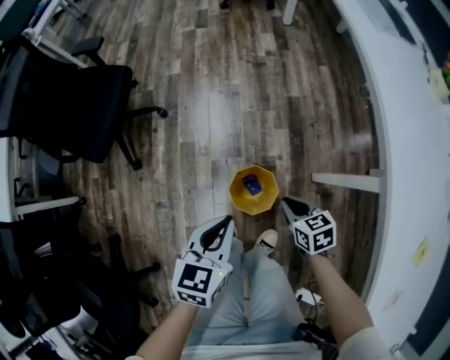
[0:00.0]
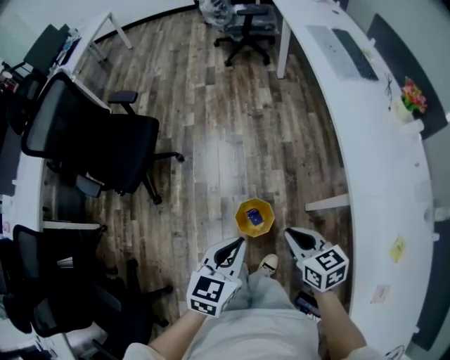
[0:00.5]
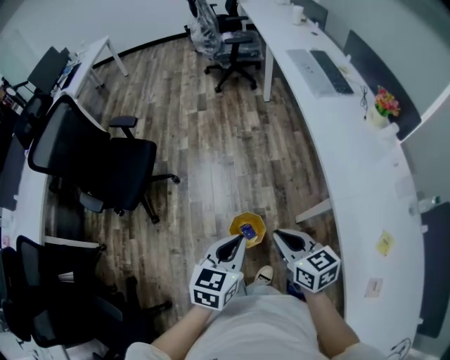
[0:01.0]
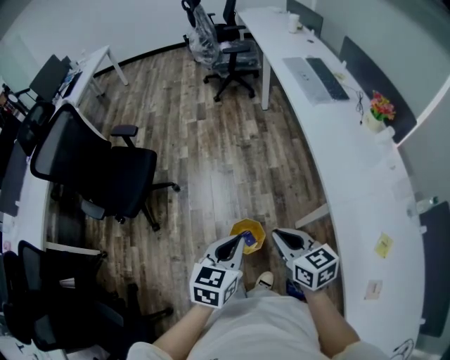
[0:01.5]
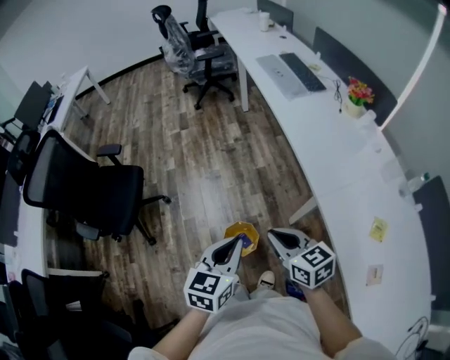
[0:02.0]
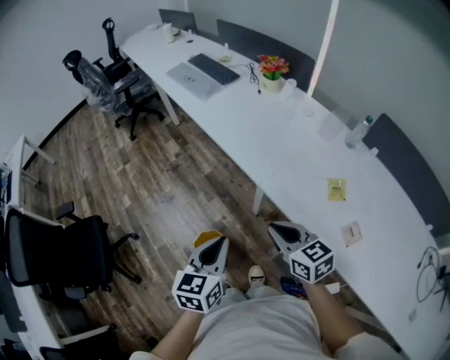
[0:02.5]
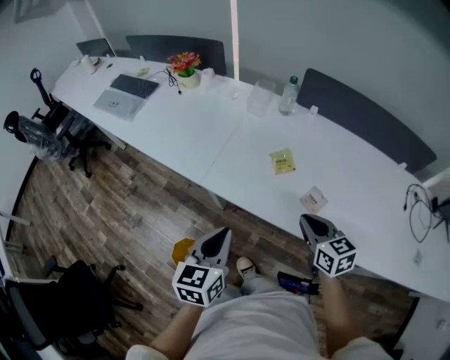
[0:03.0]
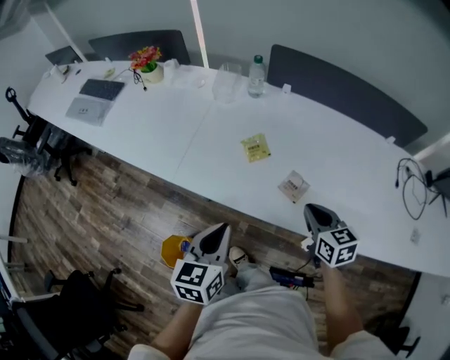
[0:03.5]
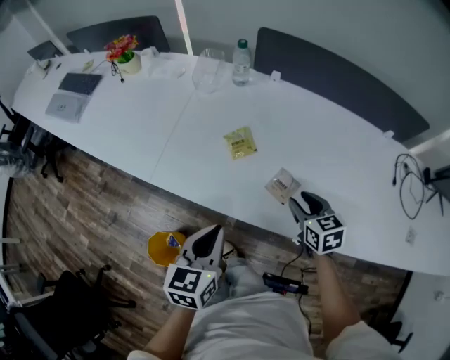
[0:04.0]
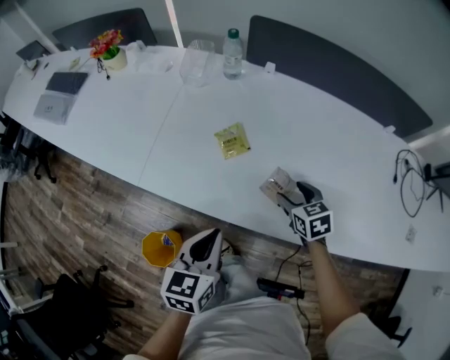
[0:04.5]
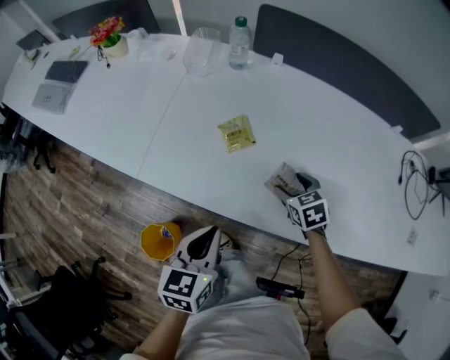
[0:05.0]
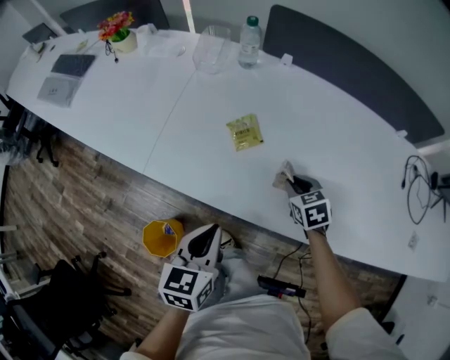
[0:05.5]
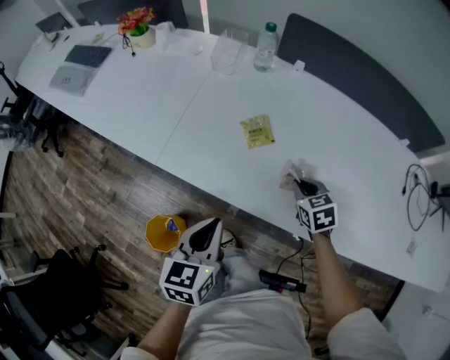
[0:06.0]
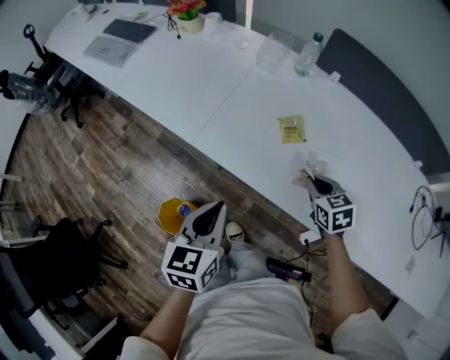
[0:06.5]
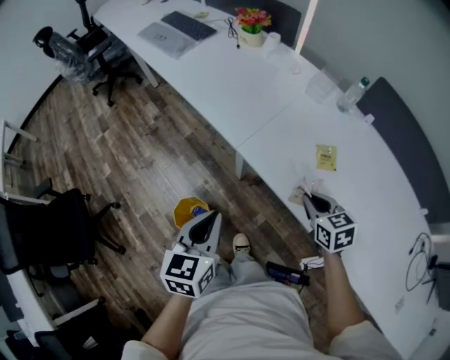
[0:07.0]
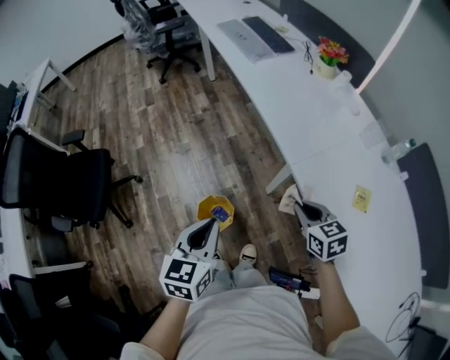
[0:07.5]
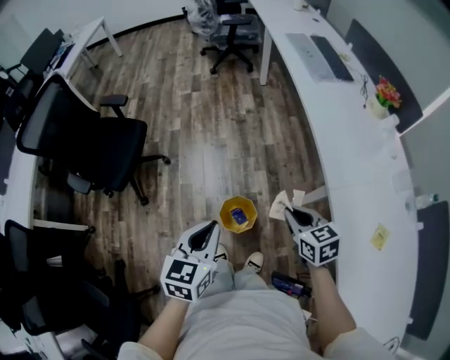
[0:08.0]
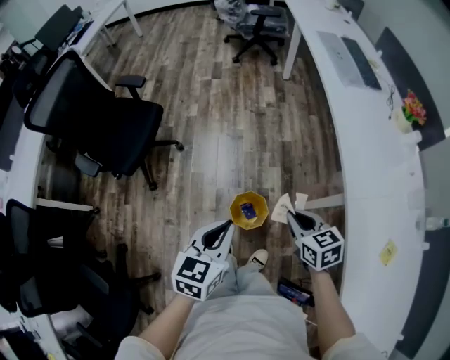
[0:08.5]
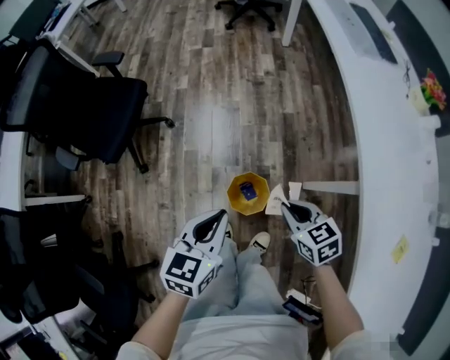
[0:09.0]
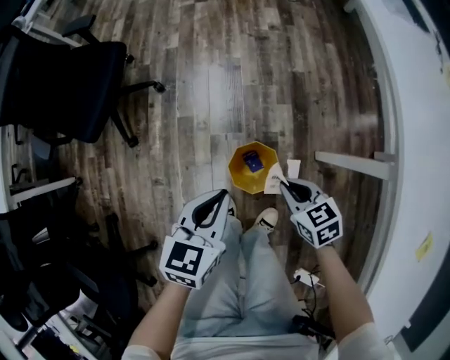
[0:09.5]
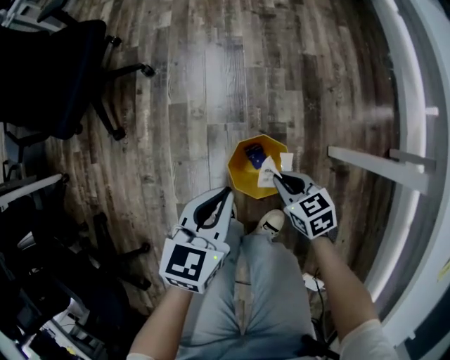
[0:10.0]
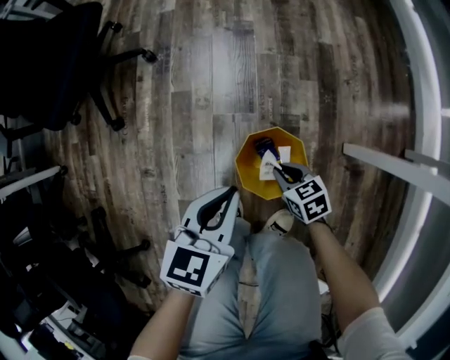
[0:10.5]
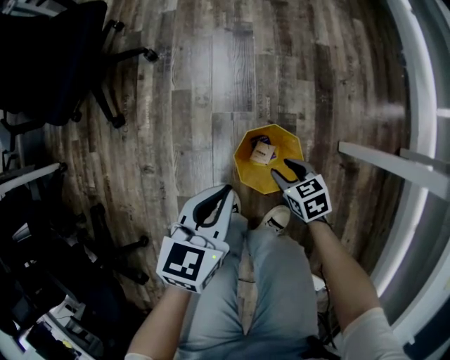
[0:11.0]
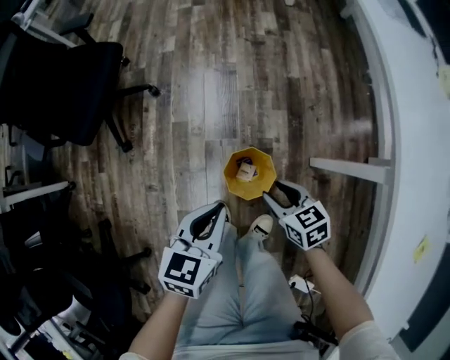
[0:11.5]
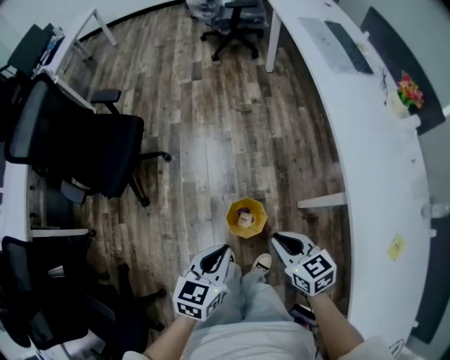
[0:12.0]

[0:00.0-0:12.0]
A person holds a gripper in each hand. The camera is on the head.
0:00.0 to 0:02.0: The two grippers go approximately 30 cm upward. The right gripper turns by roughly 30 degrees.
0:02.0 to 0:04.0: The left gripper moves roughly 40 cm, and turns by roughly 50 degrees. The right gripper shifts by some 60 cm, swivels some 70 degrees, and opens up.
0:04.0 to 0:06.0: The right gripper travels downward by about 5 cm, and closes up.
0:06.0 to 0:08.0: Both grippers are carried some 50 cm. The right gripper swivels about 60 degrees, while the left gripper turns by approximately 60 degrees.
0:08.0 to 0:10.0: Both grippers move downward, about 40 cm. The right gripper turns by about 20 degrees.
0:10.0 to 0:12.0: Both grippers move upward, about 30 cm. The right gripper opens, then closes again.

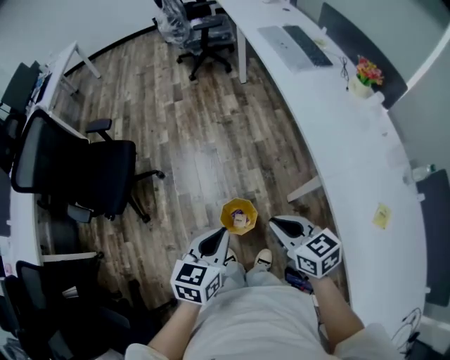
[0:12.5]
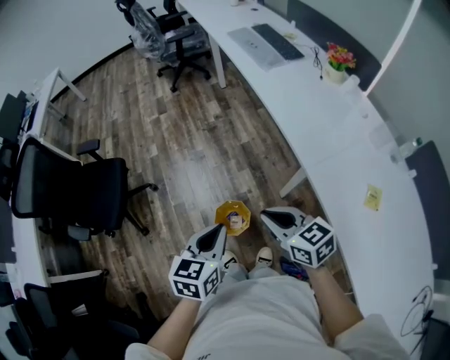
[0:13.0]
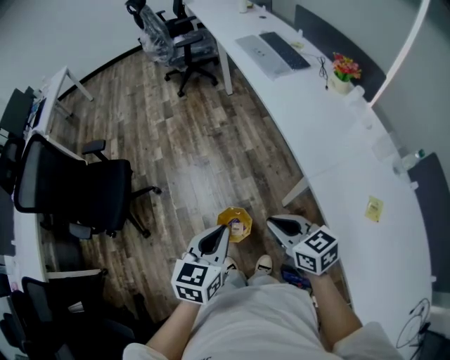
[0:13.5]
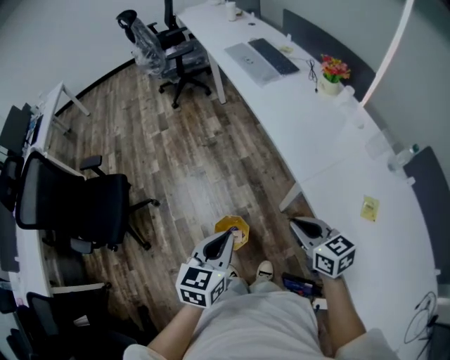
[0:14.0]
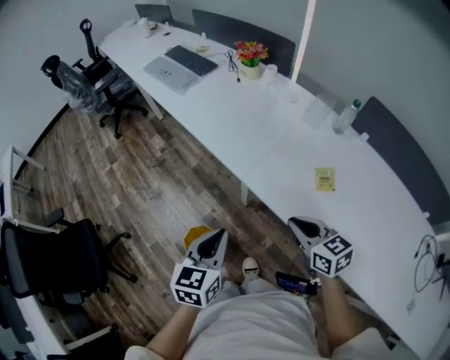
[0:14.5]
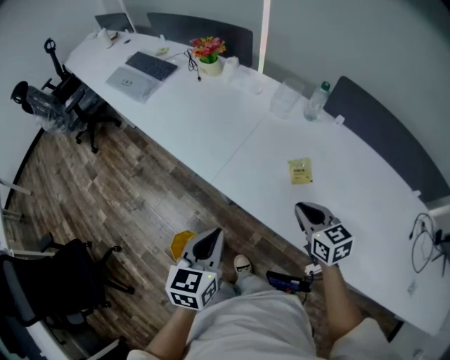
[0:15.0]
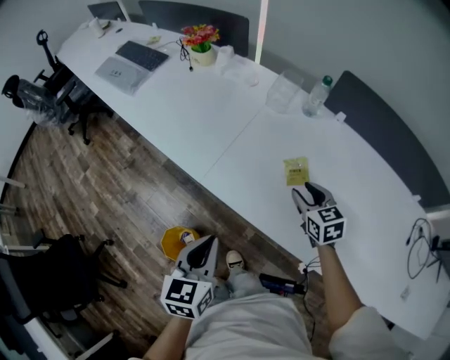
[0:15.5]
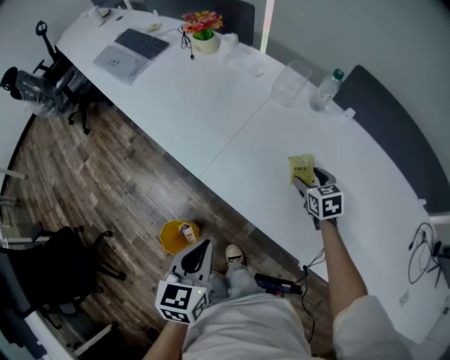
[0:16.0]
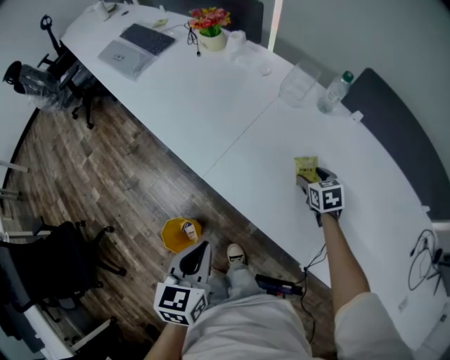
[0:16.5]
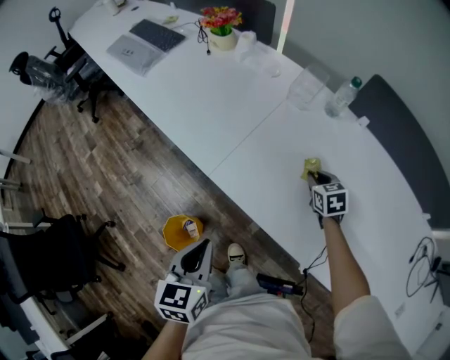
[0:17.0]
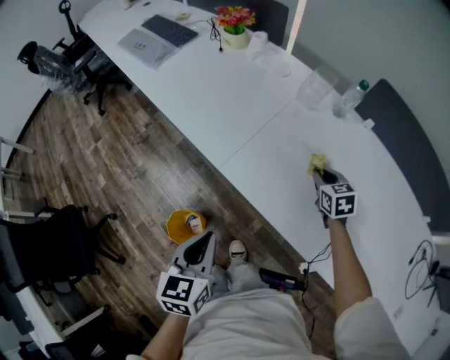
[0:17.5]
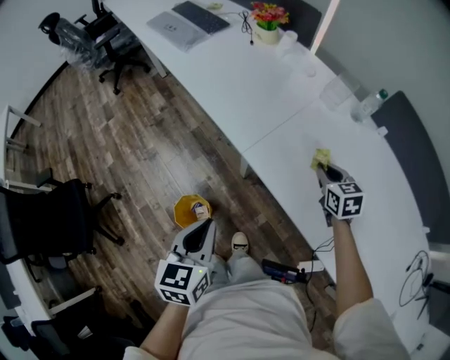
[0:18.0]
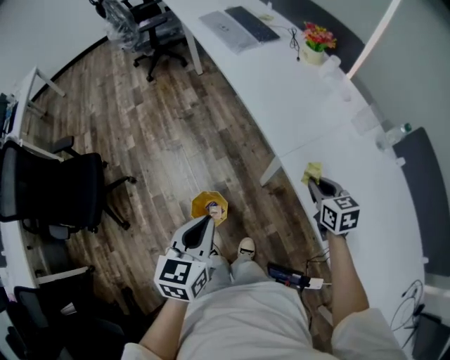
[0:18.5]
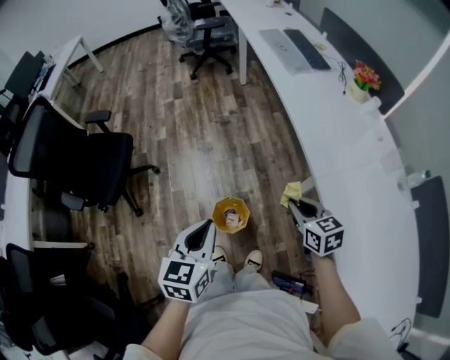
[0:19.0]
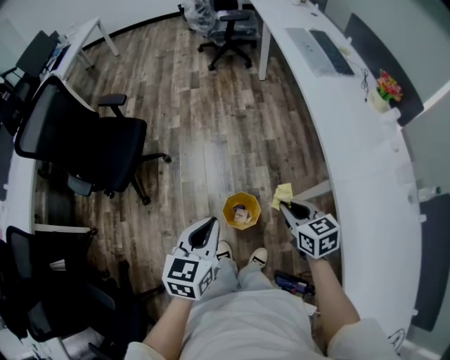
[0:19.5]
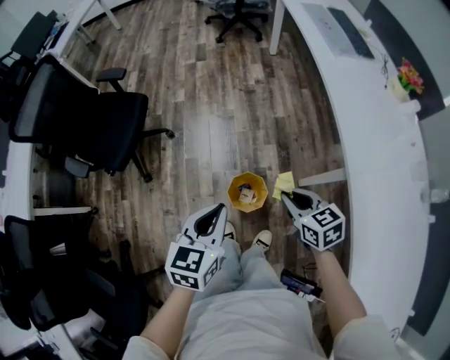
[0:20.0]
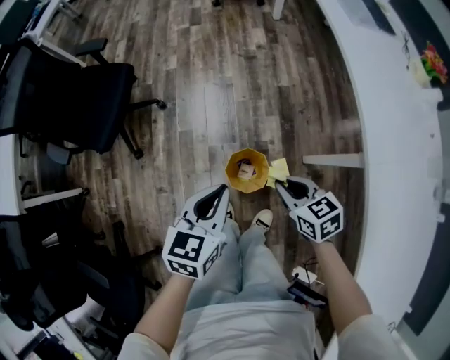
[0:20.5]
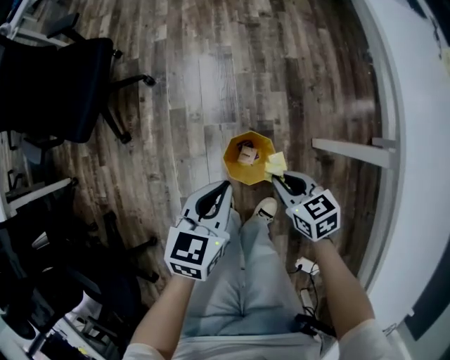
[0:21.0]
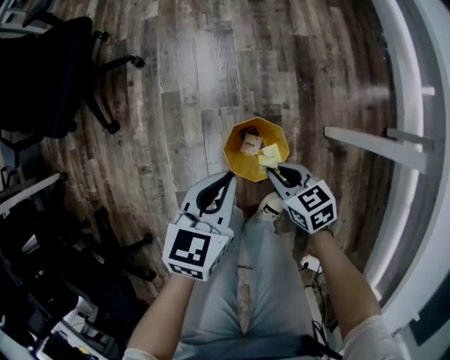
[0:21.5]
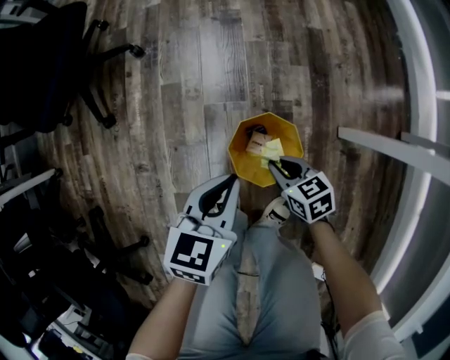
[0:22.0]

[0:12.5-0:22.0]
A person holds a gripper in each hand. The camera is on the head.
0:12.5 to 0:14.5: The left gripper ends up about 20 cm from where it was, and rotates about 30 degrees. Meanwhile the right gripper changes place by about 30 cm, and swivels about 40 degrees.
0:14.5 to 0:16.5: The left gripper is displaced to the right and downward by some 10 cm. The right gripper is displaced to the right, forward and downward by roughly 35 cm, rotates roughly 30 degrees, and opens up.
0:16.5 to 0:18.0: The right gripper moves to the left and upward, roughly 15 cm, and closes up, while the left gripper moves to the left, some 10 cm.
0:18.0 to 0:20.0: The right gripper ends up roughly 50 cm from where it was, and swivels roughly 50 degrees. The left gripper moves approximately 25 cm, and swivels approximately 30 degrees.
0:20.0 to 0:22.0: The two grippers go approximately 40 cm downward.

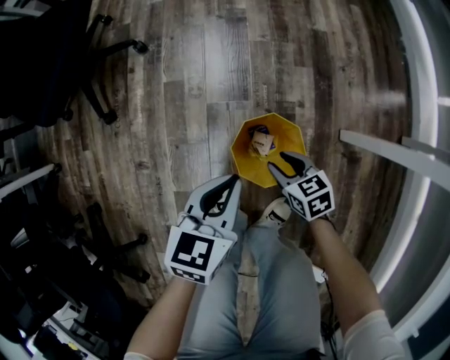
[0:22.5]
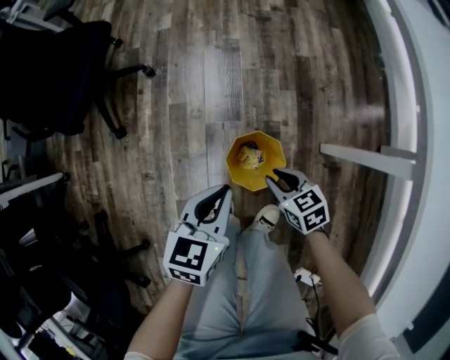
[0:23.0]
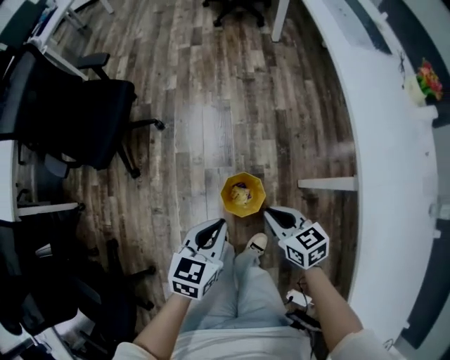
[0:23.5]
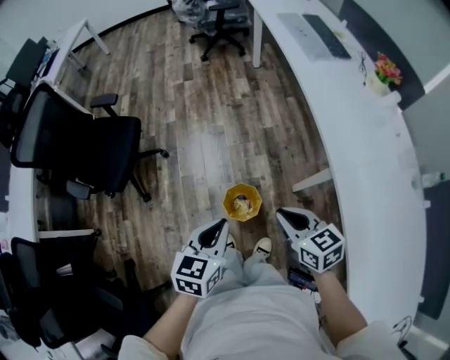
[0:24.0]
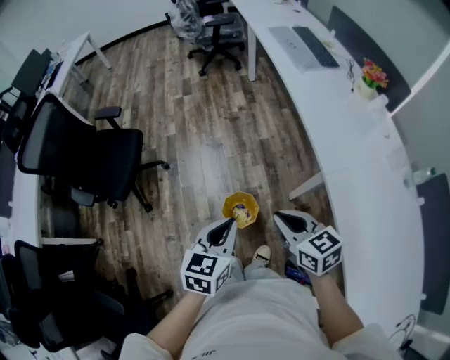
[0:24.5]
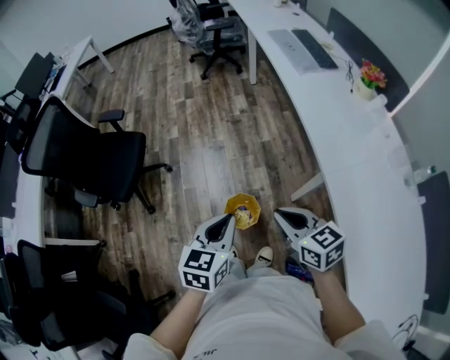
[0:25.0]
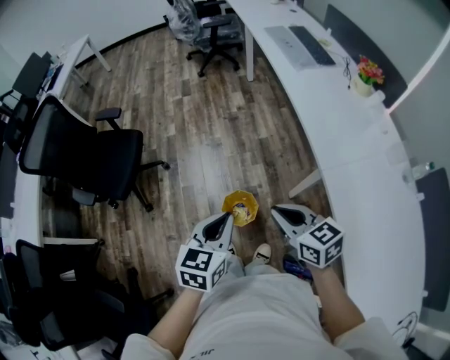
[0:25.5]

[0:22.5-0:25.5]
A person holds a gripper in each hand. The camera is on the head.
0:22.5 to 0:24.0: Both grippers move upward, about 50 cm. The right gripper rotates some 20 degrees, and closes.
0:24.0 to 0:25.5: The two grippers go roughly 5 cm upward.

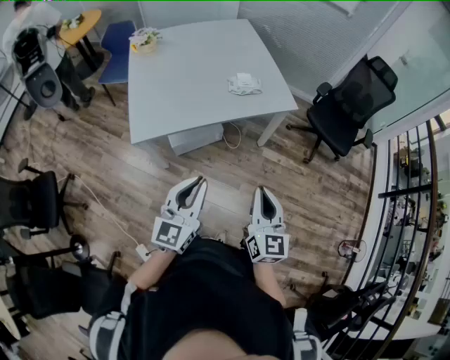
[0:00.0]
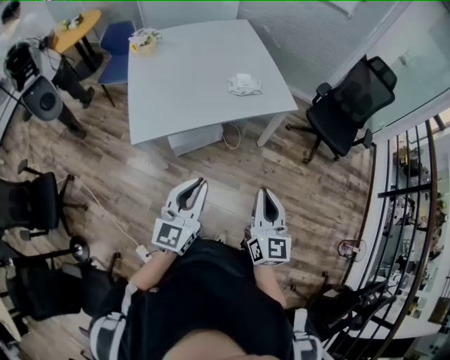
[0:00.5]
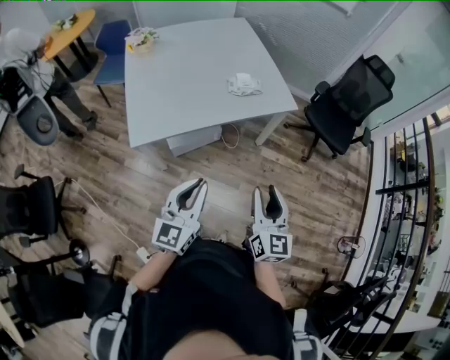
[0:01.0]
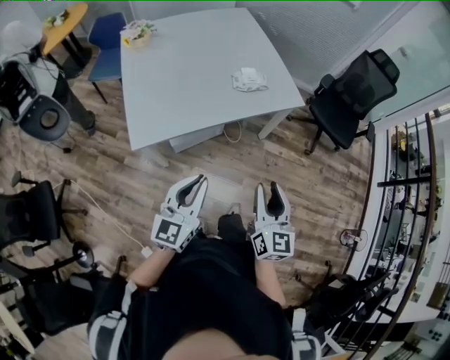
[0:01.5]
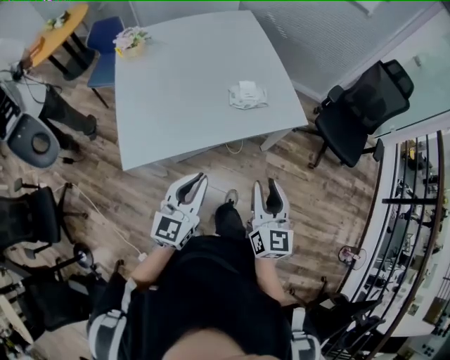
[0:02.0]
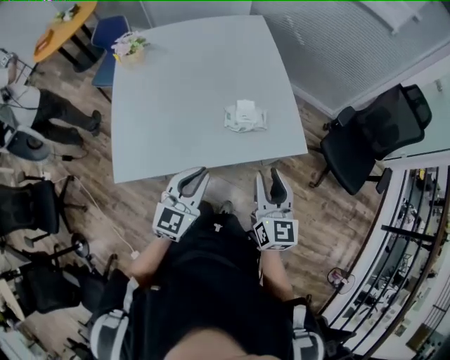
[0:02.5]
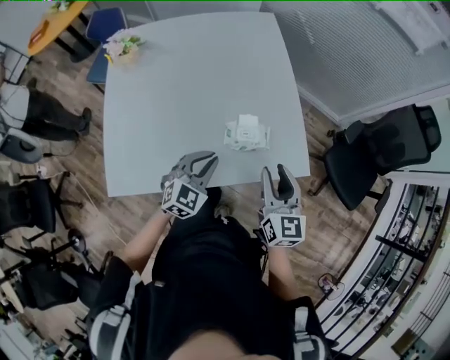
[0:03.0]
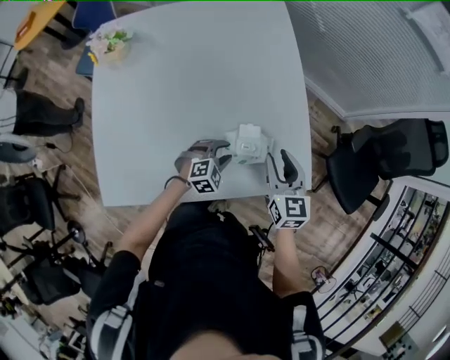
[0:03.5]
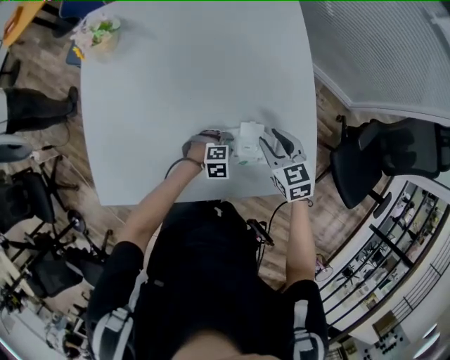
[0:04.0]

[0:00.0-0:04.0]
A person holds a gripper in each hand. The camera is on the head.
0:00.0 to 0:02.0: The grippers both shift forward by some 20 cm. The right gripper opens its fingers.
0:02.0 to 0:04.0: The pair of grippers is taken forward, about 50 cm. The left gripper moves downward, about 40 cm, points its fingers about 60 degrees further downward, and opens up; the right gripper tips its fingers downward by roughly 30 degrees.
